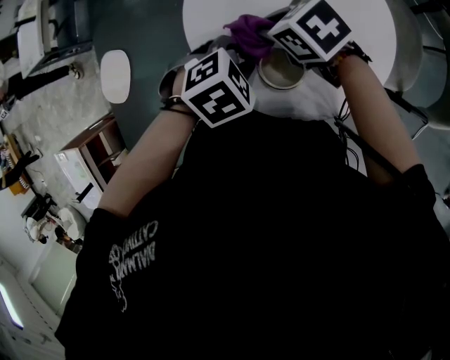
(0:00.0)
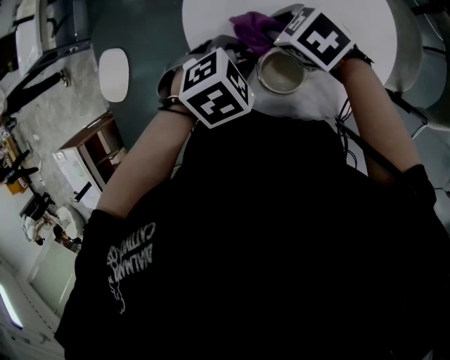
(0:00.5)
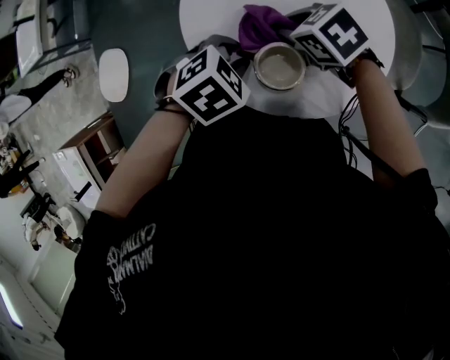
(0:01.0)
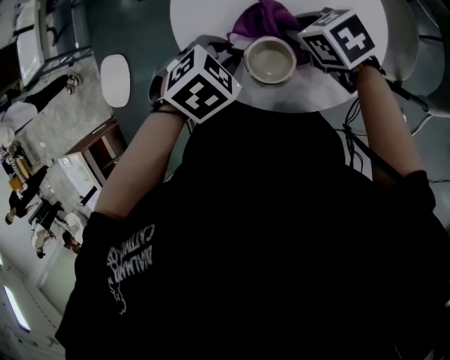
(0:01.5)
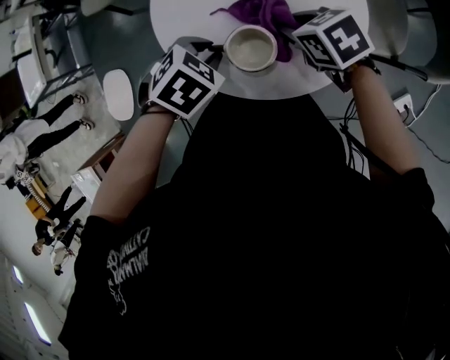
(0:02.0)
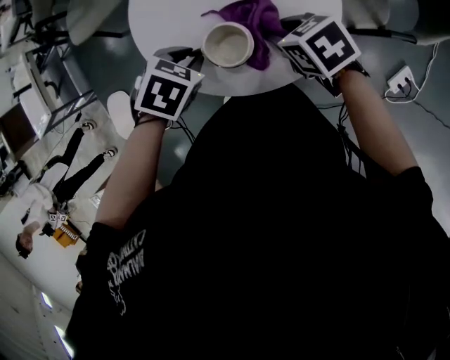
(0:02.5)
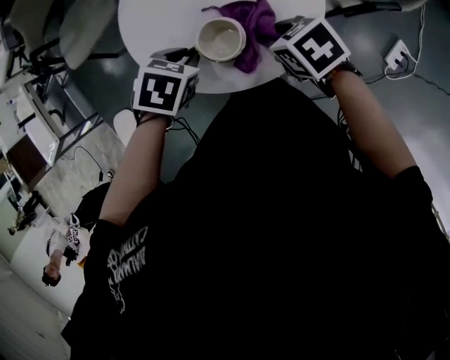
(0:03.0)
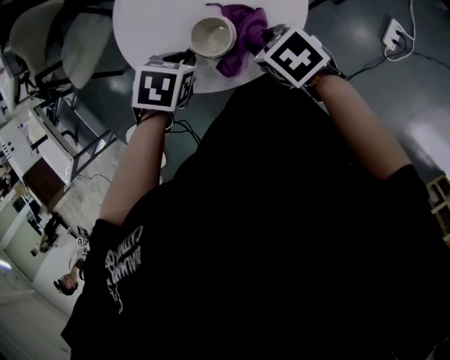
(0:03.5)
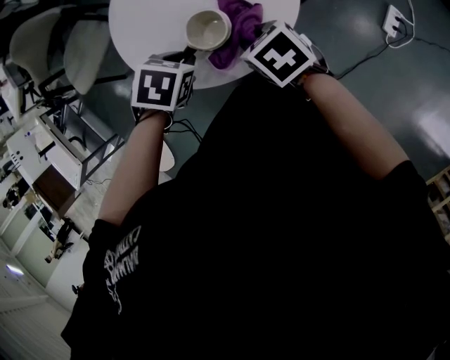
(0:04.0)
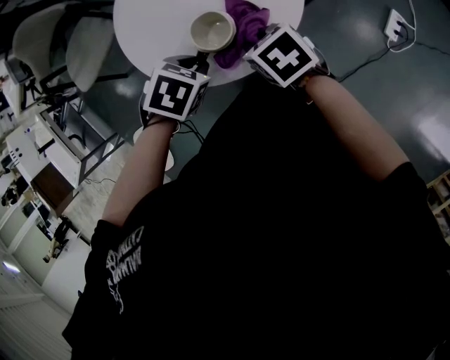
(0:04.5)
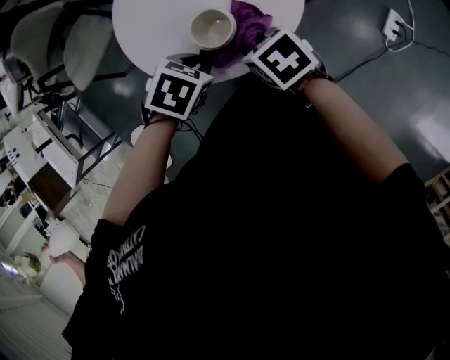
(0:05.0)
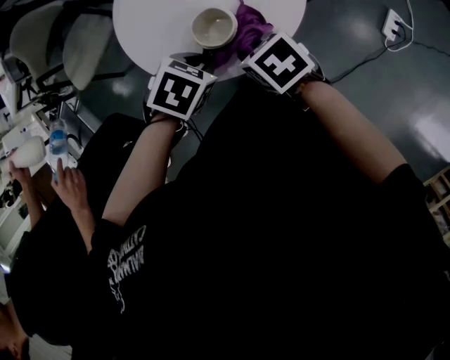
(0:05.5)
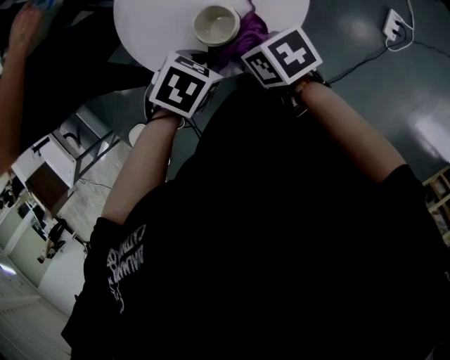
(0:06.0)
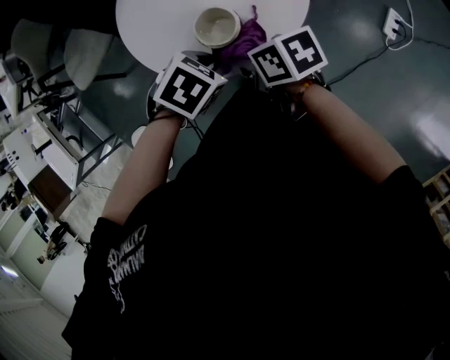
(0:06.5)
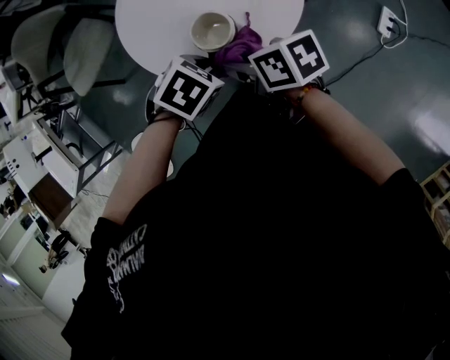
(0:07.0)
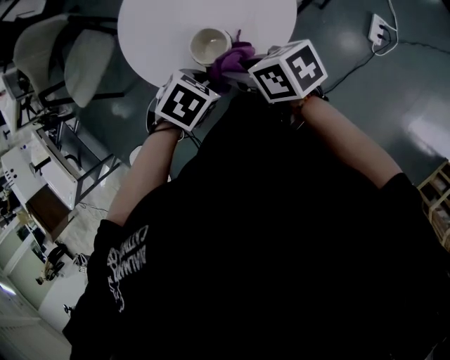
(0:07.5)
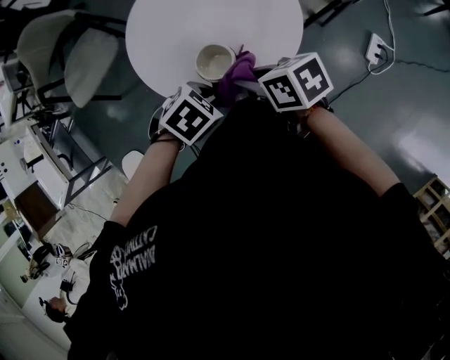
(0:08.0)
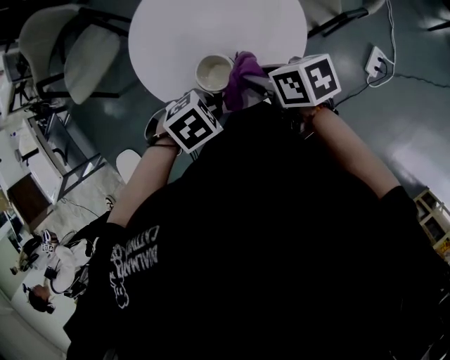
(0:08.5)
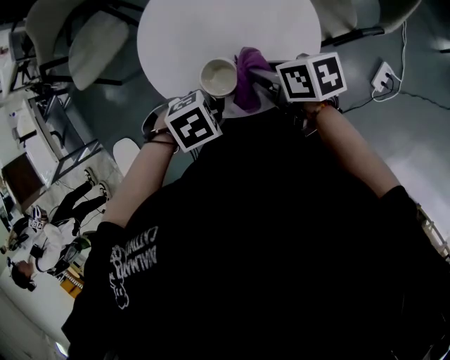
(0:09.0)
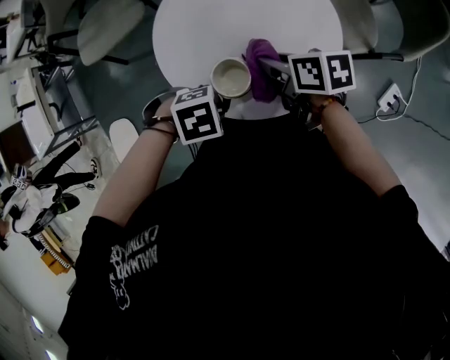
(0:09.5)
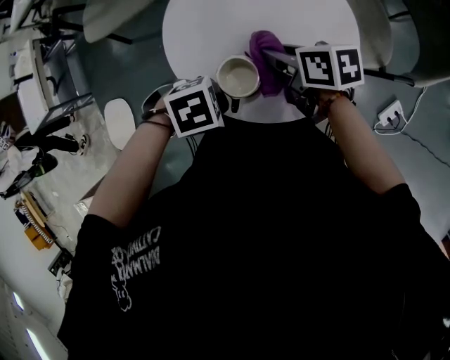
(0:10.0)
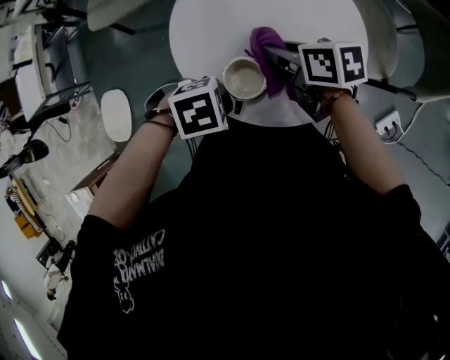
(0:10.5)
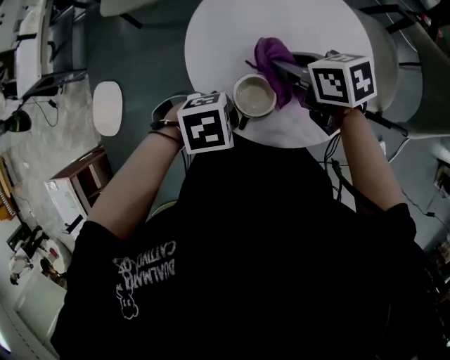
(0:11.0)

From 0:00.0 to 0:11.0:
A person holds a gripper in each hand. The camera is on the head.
From 0:00.0 to 0:02.0: The right gripper shifts by roughly 15 cm.
From 0:02.0 to 0:03.5: The right gripper moves roughly 15 cm.
From 0:03.5 to 0:05.5: The right gripper moves roughly 5 cm; the left gripper changes place by some 5 cm.
From 0:05.5 to 0:07.5: The right gripper is displaced upward by approximately 5 cm, and turns by some 30 degrees.
From 0:07.5 to 0:09.0: The right gripper changes place by approximately 10 cm.
From 0:09.0 to 0:11.0: The left gripper changes place by some 5 cm. The right gripper ends up some 15 cm from where it was, and turns by about 30 degrees.

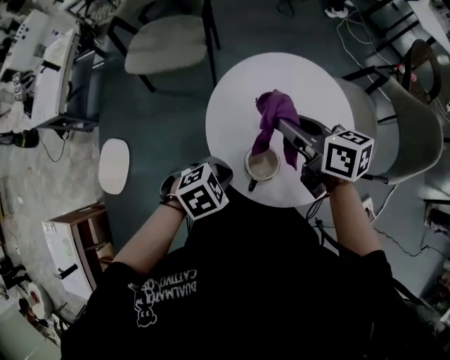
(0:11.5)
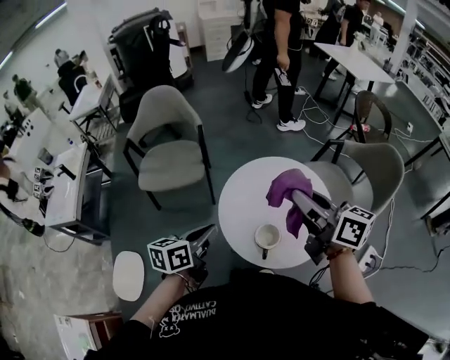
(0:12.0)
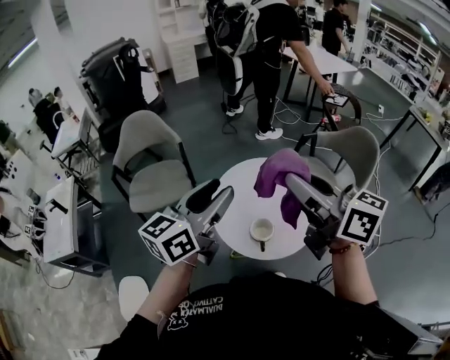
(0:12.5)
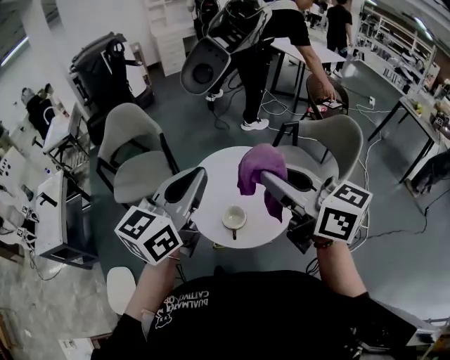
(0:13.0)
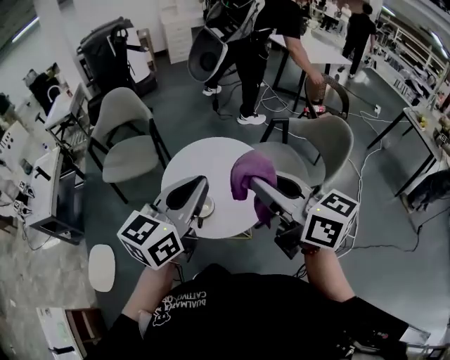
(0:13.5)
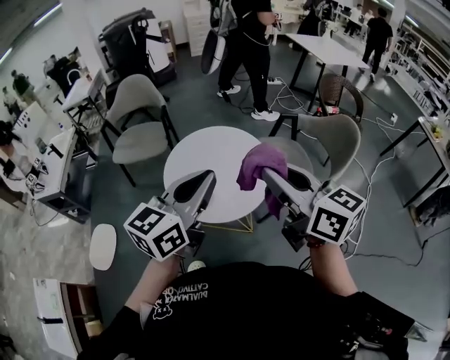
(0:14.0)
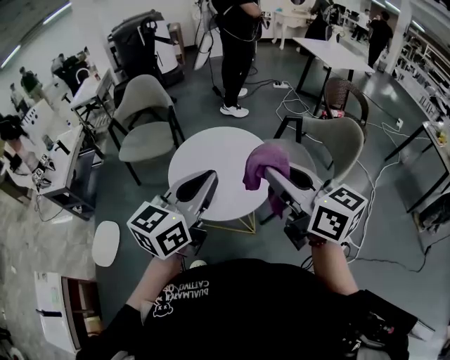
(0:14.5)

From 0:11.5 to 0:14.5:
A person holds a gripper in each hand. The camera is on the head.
From 0:11.5 to 0:13.0: Both grippers move upward, roughly 35 cm. The left gripper points its fingers some 70 degrees further upward, and opens, then closes again, while the right gripper swivels some 40 degrees.
From 0:13.0 to 0:14.5: The grippers both shift to the right and backward by about 20 cm.

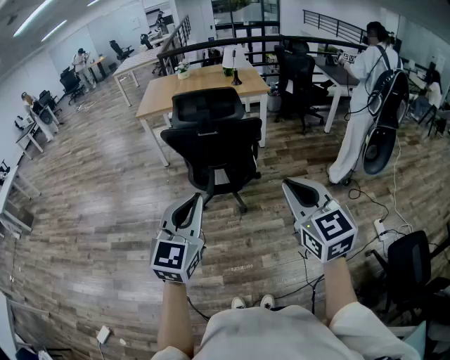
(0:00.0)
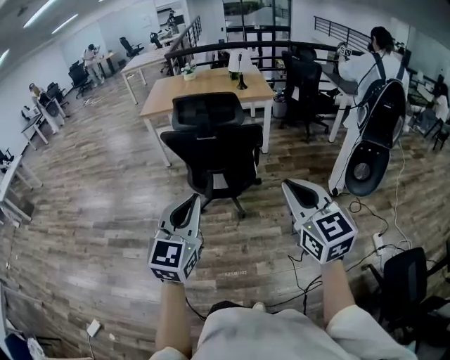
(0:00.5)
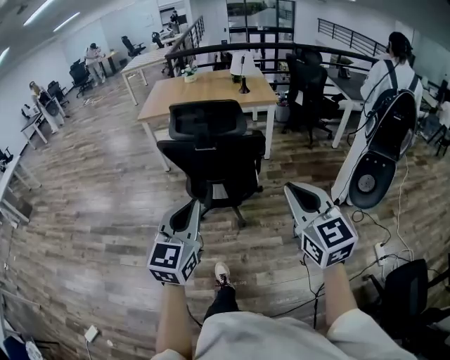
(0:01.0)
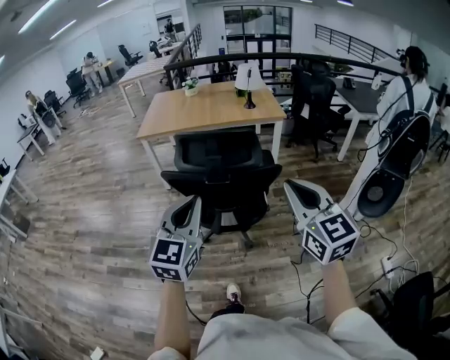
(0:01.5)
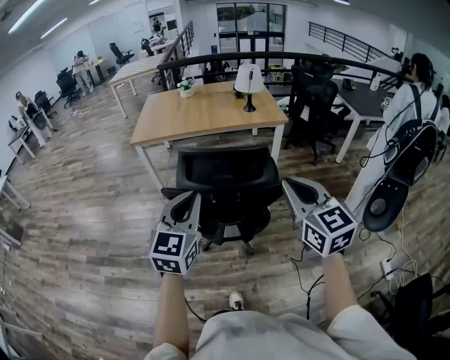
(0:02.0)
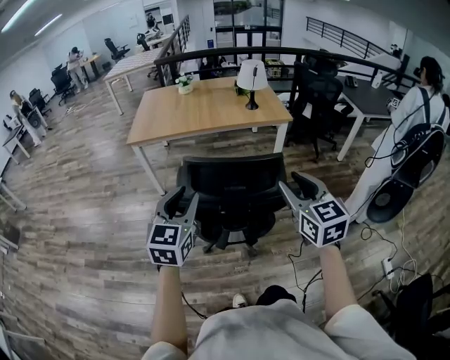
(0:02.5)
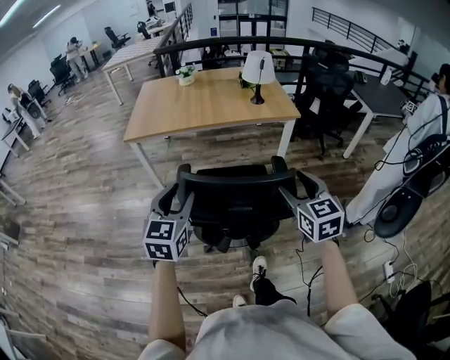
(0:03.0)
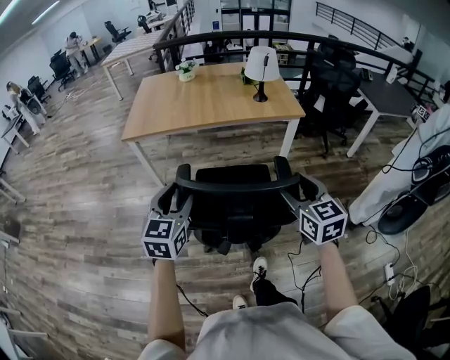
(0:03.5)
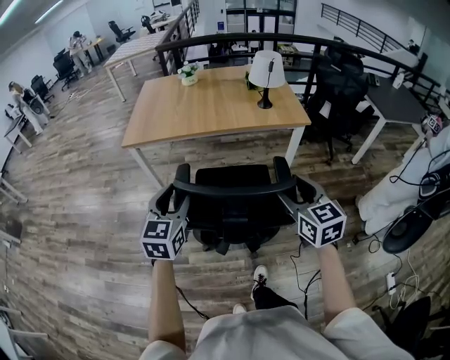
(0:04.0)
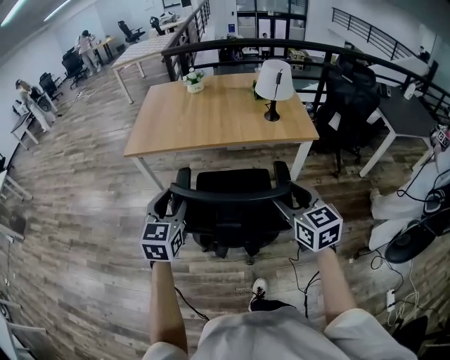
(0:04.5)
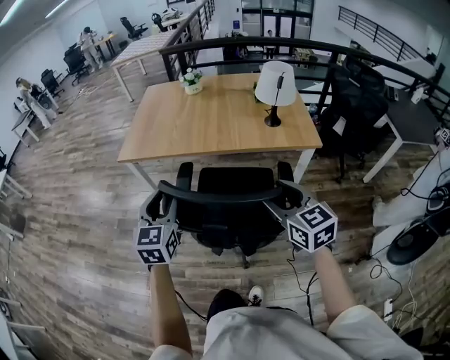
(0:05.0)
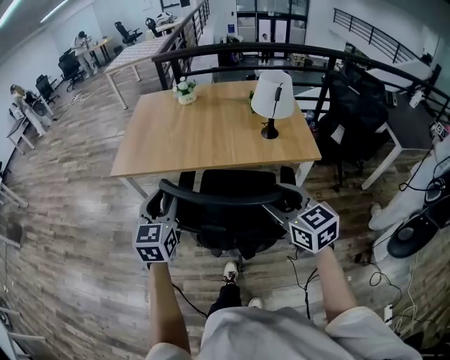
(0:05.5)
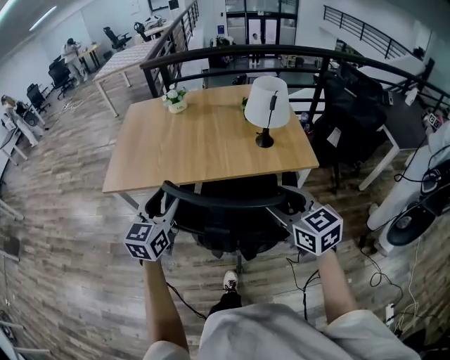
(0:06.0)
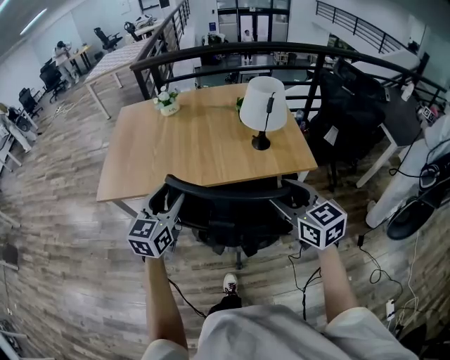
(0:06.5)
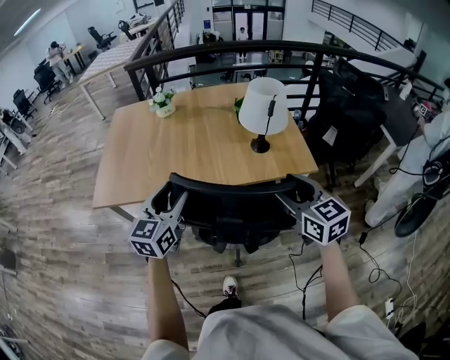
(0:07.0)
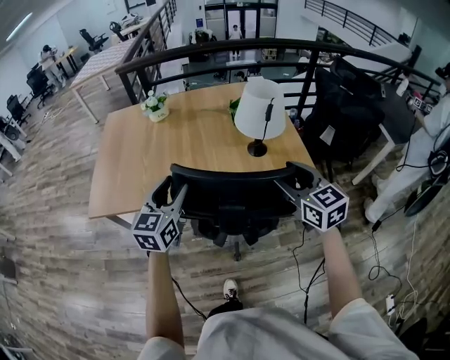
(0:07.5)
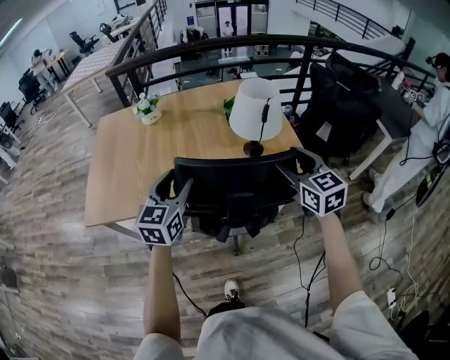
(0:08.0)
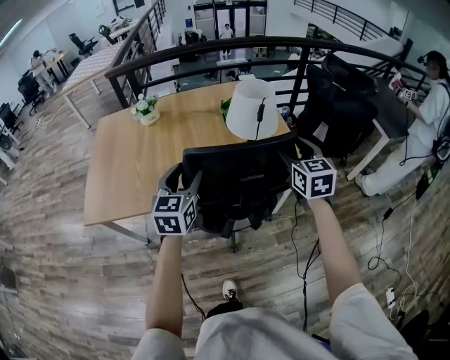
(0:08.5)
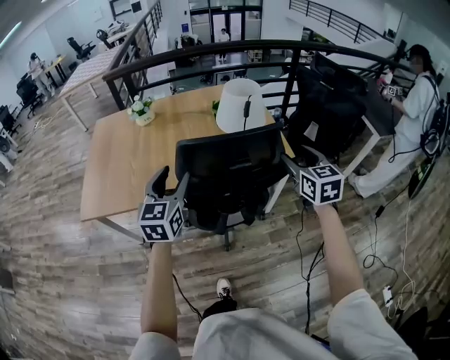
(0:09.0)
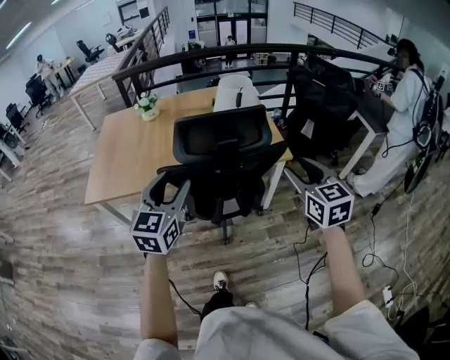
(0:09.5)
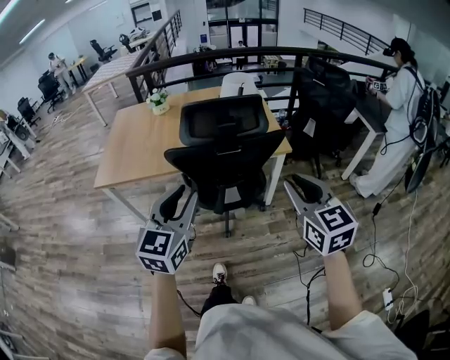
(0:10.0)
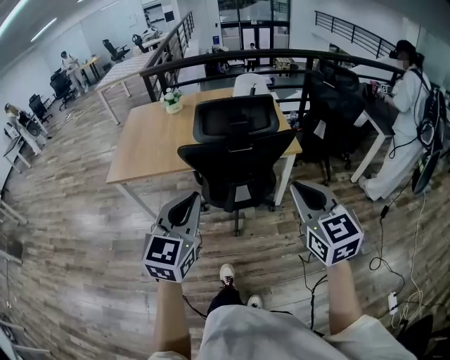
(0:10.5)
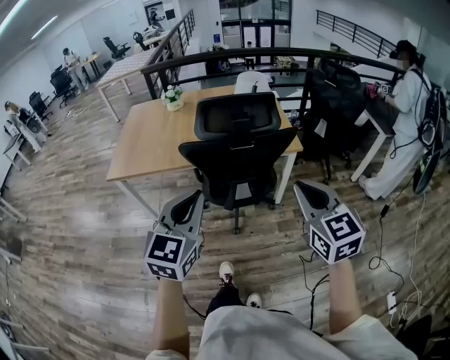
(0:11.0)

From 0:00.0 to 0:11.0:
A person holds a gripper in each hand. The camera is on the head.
From 0:00.0 to 0:02.0: Both grippers travel together forward, about 35 cm.
From 0:02.0 to 0:03.5: The grippers both shift forward and downward by roughly 25 cm. The right gripper opens its fingers. Meanwhile the left gripper opens up.
From 0:03.5 to 0:05.5: Both grippers travel together forward, roughly 30 cm.
From 0:05.5 to 0:07.5: The right gripper shifts some 25 cm forward and to the right. Meanwhile the left gripper is displaced forward by about 20 cm.
From 0:07.5 to 0:09.0: The right gripper heads to the right, covering approximately 10 cm. The left gripper travels to the right by roughly 5 cm.
From 0:09.0 to 0:11.0: The two grippers go approximately 35 cm backward. The left gripper closes, while the right gripper closes.

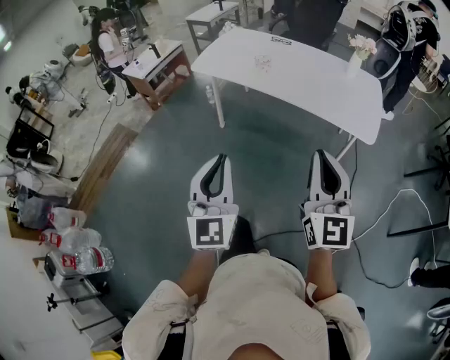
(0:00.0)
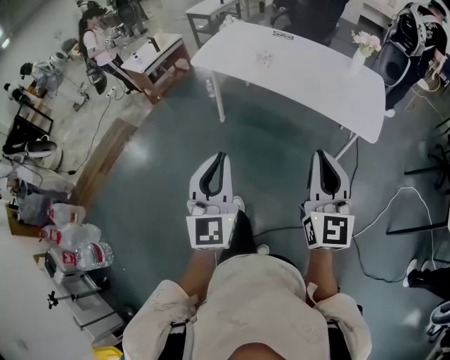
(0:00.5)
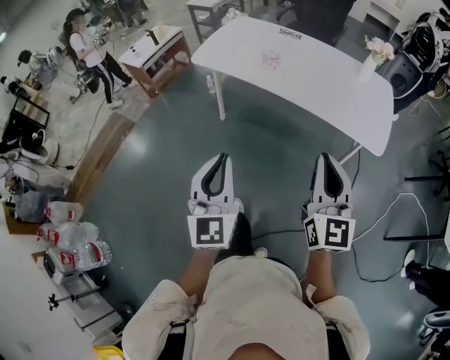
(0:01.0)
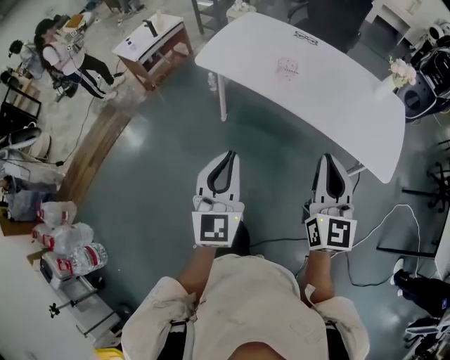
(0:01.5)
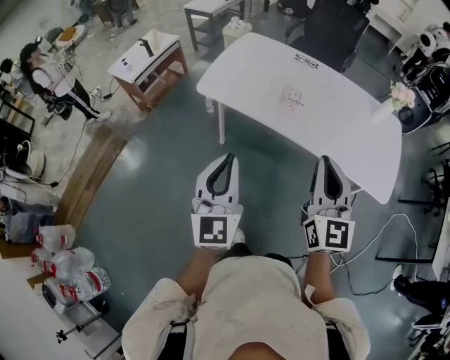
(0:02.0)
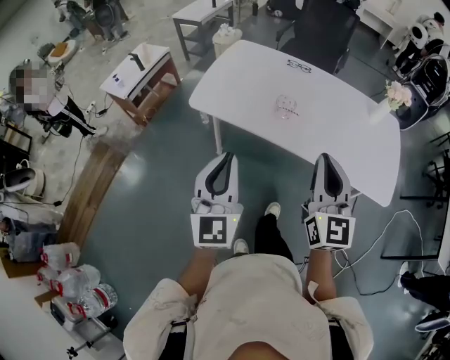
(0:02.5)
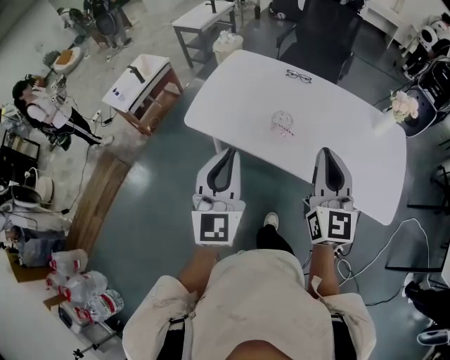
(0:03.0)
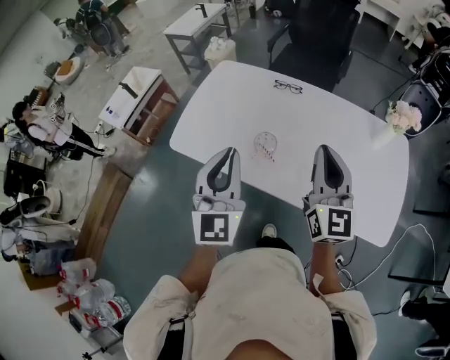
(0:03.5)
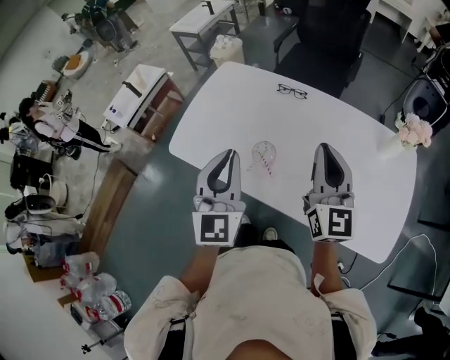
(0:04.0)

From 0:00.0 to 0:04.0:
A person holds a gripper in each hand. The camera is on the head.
From 0:00.0 to 0:02.0: Both grippers move forward, about 35 cm.
From 0:02.0 to 0:04.0: Both grippers travel together forward and to the right, roughly 40 cm.
